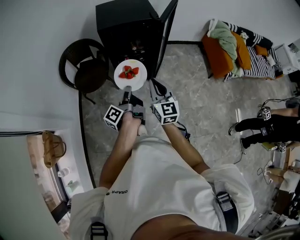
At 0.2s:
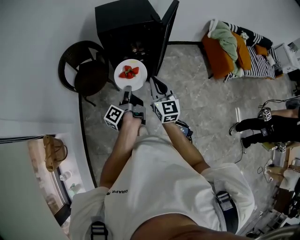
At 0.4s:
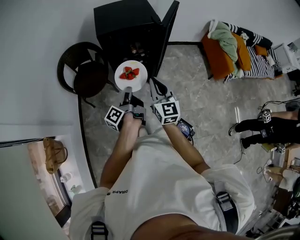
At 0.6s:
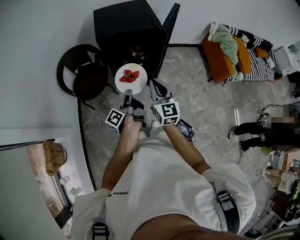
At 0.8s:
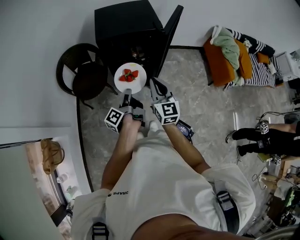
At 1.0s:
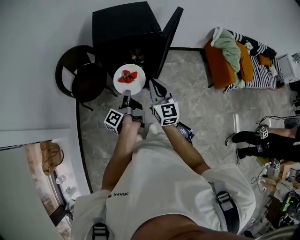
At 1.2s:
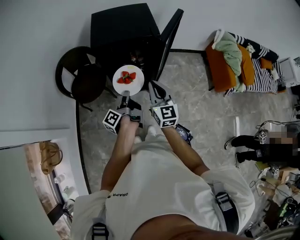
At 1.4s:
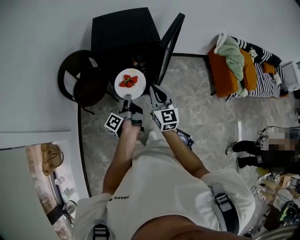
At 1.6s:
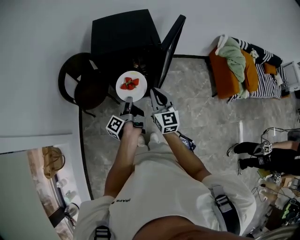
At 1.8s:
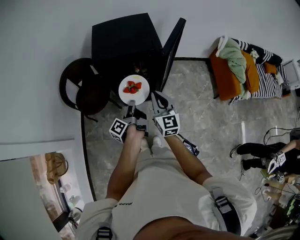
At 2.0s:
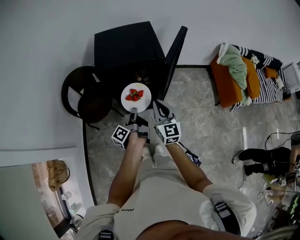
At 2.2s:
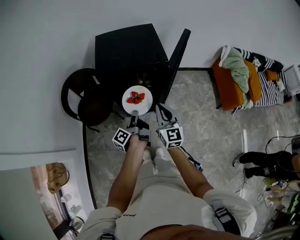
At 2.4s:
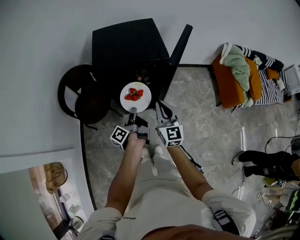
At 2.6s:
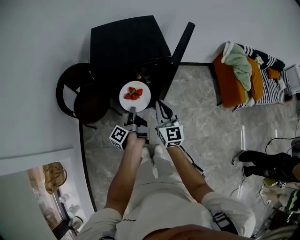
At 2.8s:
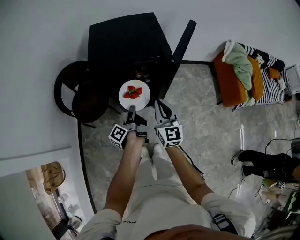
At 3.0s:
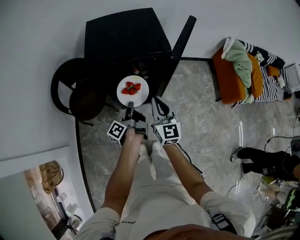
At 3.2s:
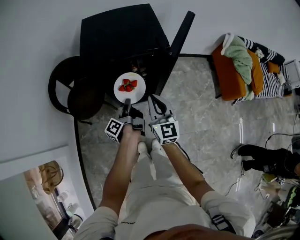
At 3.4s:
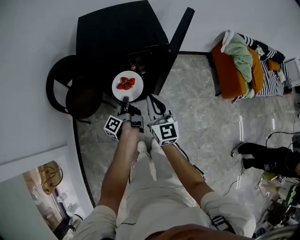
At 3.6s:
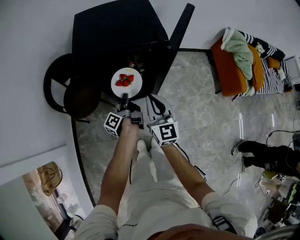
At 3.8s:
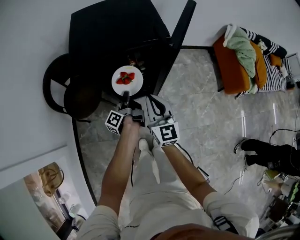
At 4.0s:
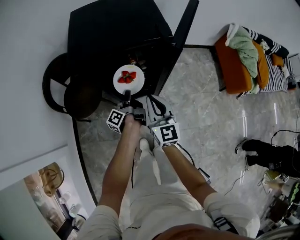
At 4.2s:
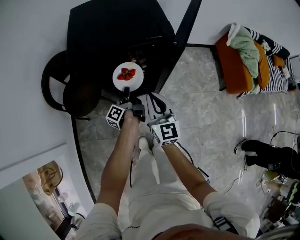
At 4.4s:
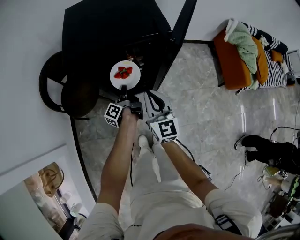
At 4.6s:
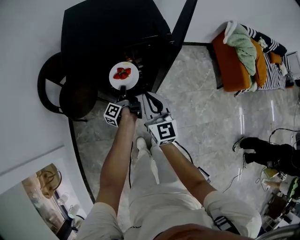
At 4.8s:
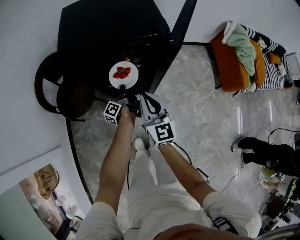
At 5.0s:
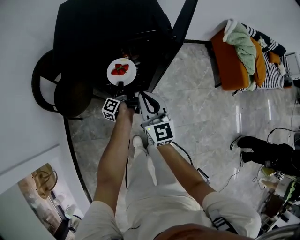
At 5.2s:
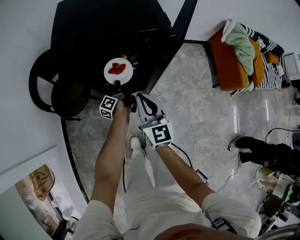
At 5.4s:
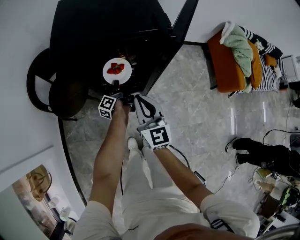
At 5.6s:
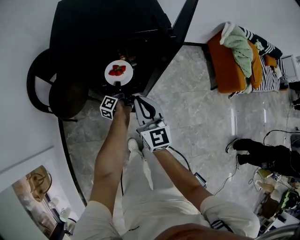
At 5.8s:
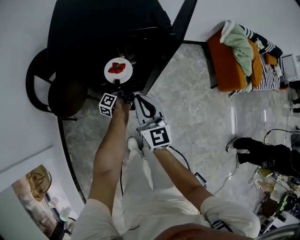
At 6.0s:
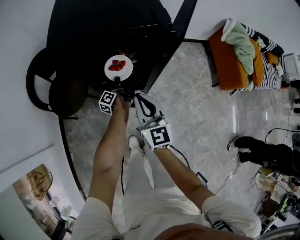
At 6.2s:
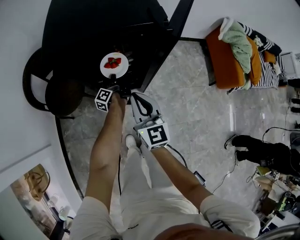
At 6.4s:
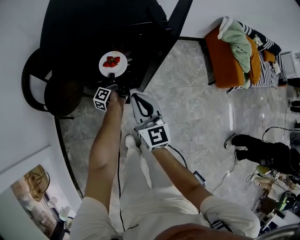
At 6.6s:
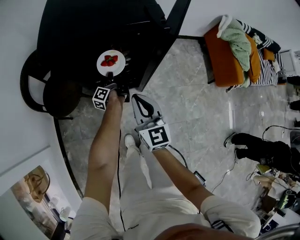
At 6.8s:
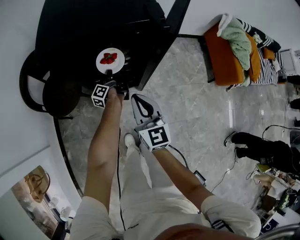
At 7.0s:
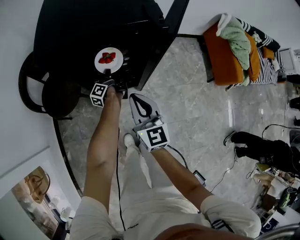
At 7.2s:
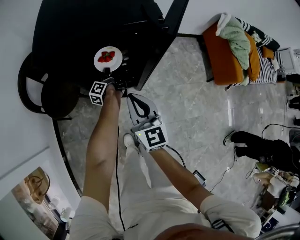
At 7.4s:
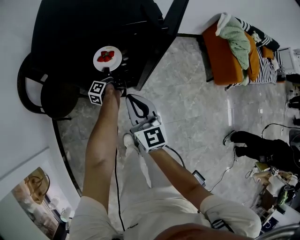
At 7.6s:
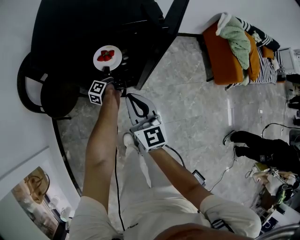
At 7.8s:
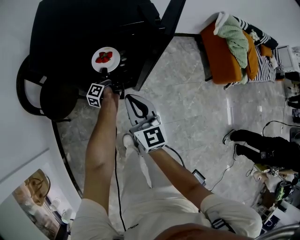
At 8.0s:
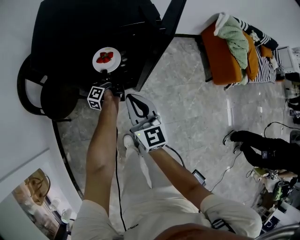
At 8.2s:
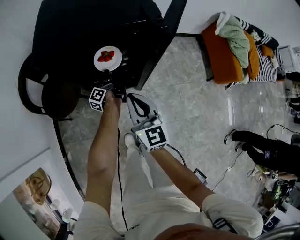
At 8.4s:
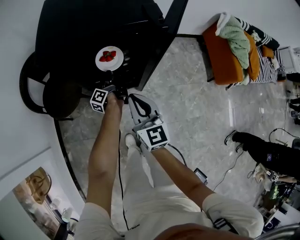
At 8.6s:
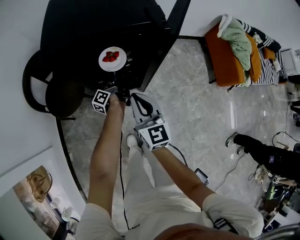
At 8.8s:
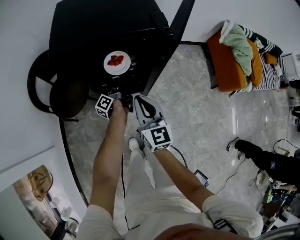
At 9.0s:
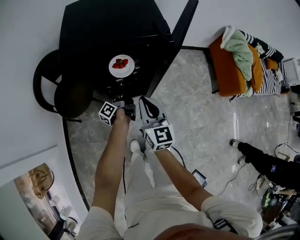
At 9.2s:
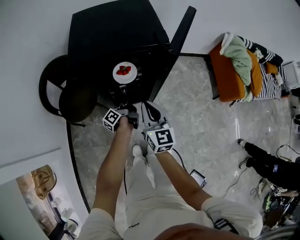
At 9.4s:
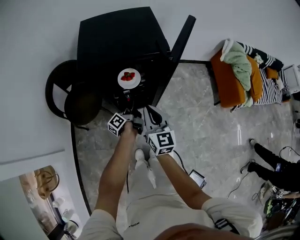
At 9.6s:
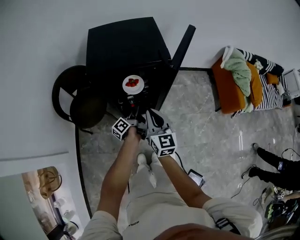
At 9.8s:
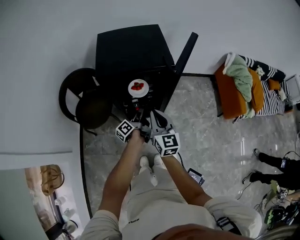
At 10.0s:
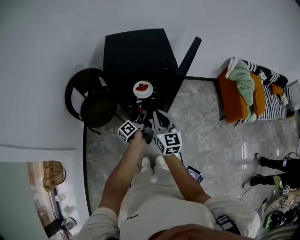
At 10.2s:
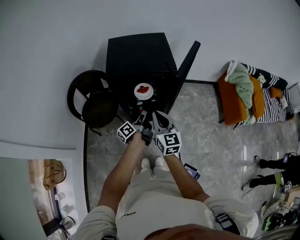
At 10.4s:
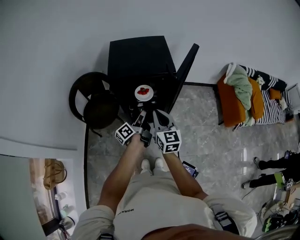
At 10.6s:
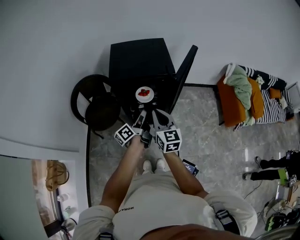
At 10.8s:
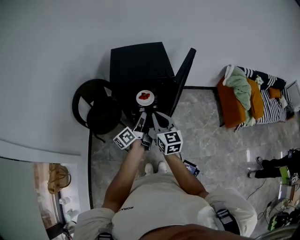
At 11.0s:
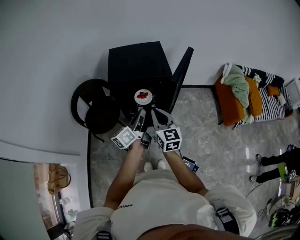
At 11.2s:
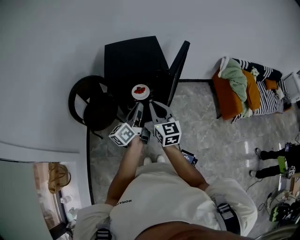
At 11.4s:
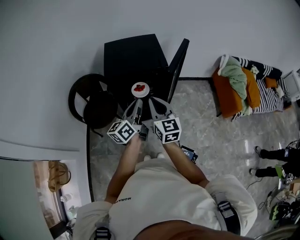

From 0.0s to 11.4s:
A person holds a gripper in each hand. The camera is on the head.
From 0.0s to 1.4s: The right gripper shifts by some 15 cm.
From 1.4s to 2.8s: The right gripper moves roughly 10 cm.
From 2.8s to 4.2s: The right gripper shifts approximately 5 cm downward.
From 8.6s to 10.0s: The right gripper is displaced upward by roughly 15 cm.
From 10.0s to 11.4s: The right gripper shifts about 10 cm upward.

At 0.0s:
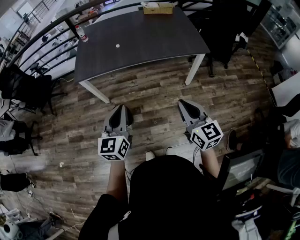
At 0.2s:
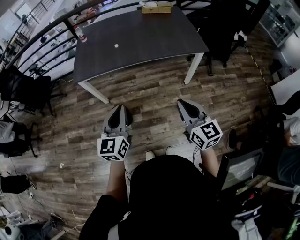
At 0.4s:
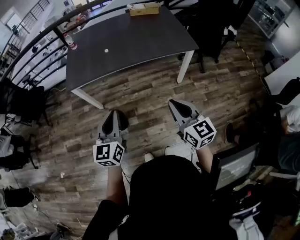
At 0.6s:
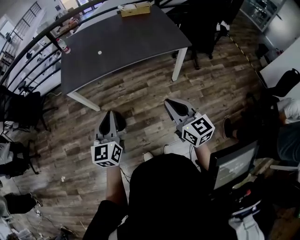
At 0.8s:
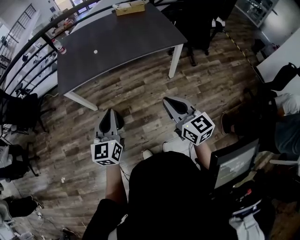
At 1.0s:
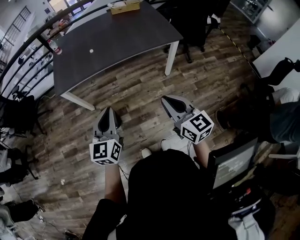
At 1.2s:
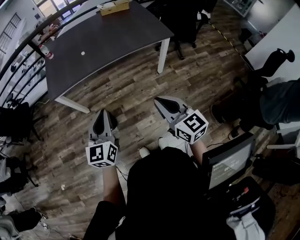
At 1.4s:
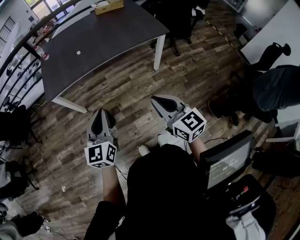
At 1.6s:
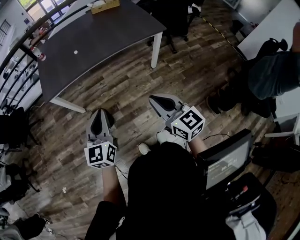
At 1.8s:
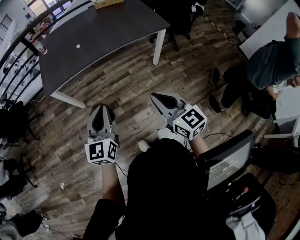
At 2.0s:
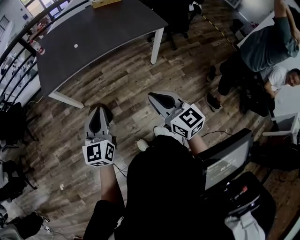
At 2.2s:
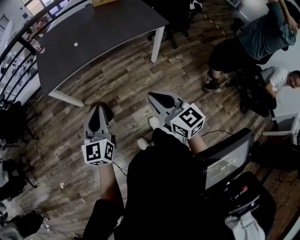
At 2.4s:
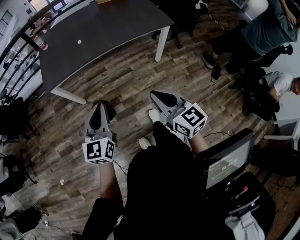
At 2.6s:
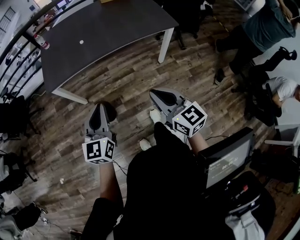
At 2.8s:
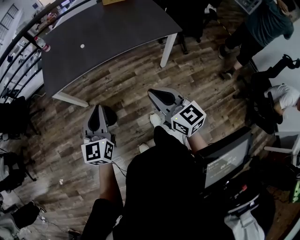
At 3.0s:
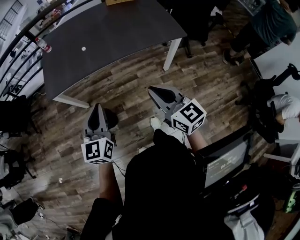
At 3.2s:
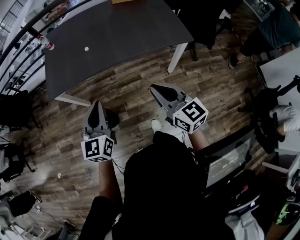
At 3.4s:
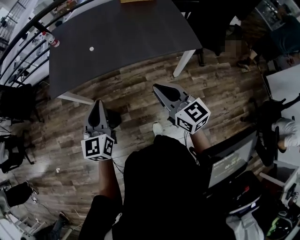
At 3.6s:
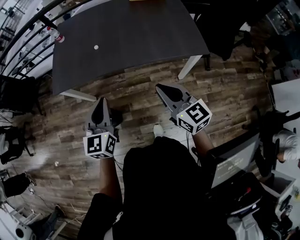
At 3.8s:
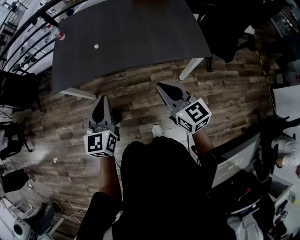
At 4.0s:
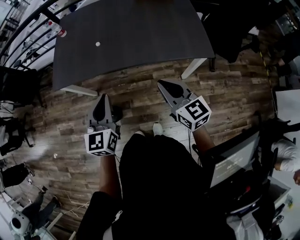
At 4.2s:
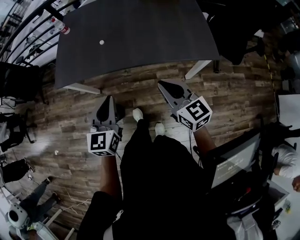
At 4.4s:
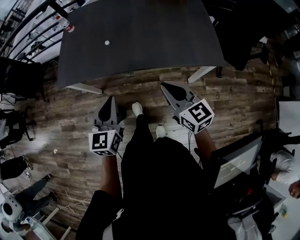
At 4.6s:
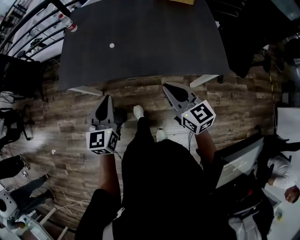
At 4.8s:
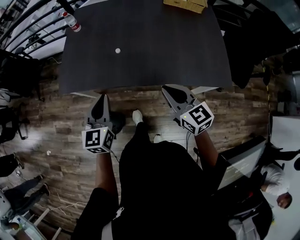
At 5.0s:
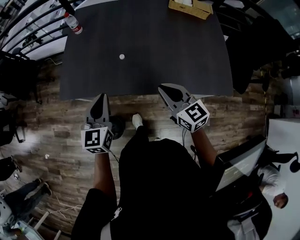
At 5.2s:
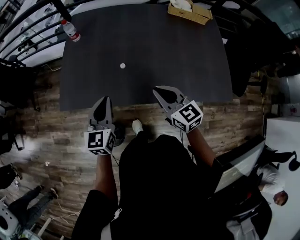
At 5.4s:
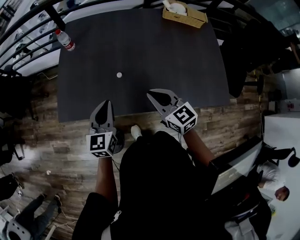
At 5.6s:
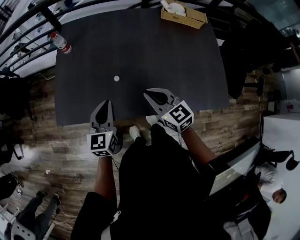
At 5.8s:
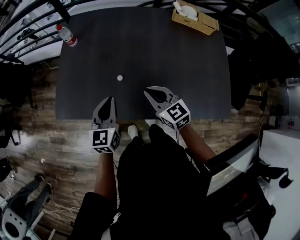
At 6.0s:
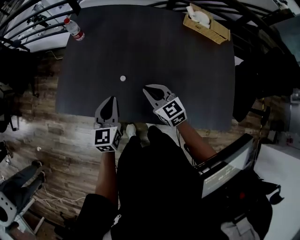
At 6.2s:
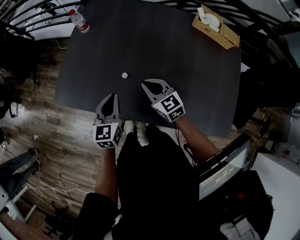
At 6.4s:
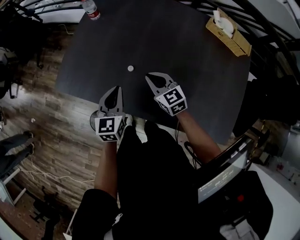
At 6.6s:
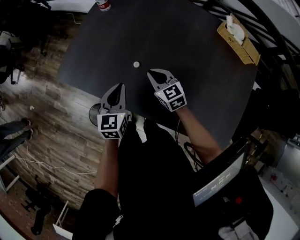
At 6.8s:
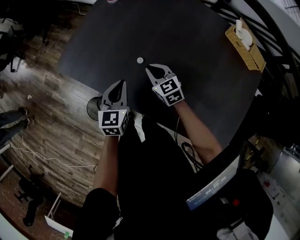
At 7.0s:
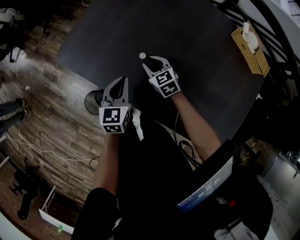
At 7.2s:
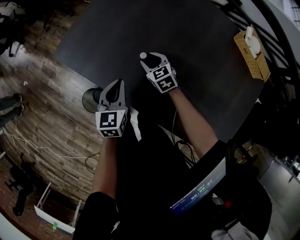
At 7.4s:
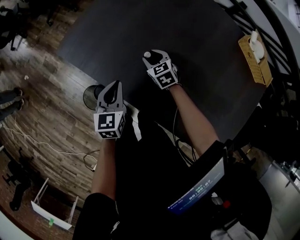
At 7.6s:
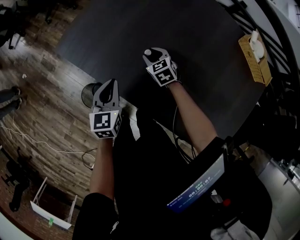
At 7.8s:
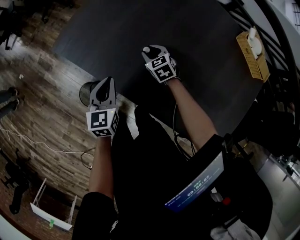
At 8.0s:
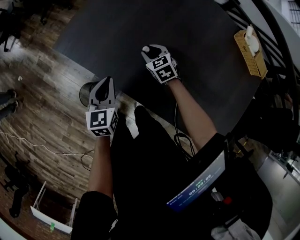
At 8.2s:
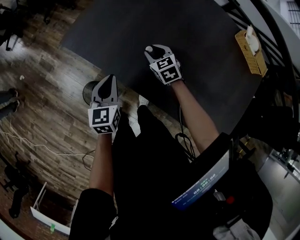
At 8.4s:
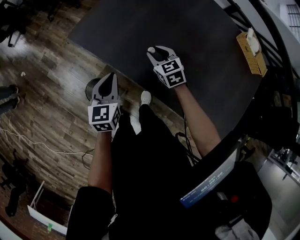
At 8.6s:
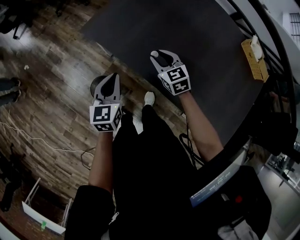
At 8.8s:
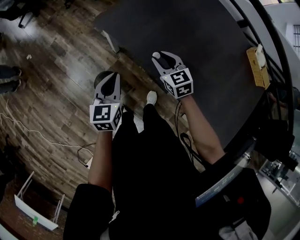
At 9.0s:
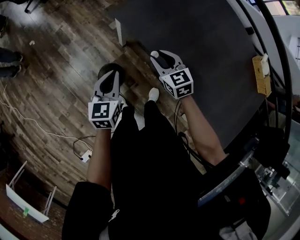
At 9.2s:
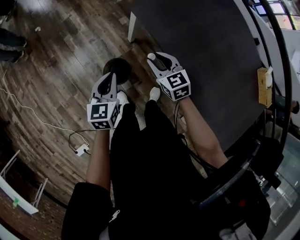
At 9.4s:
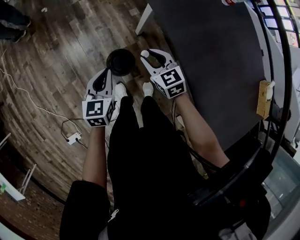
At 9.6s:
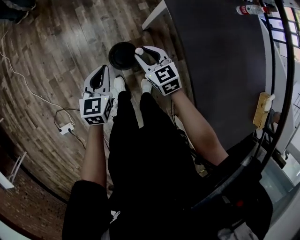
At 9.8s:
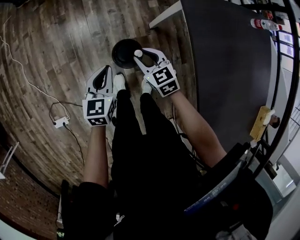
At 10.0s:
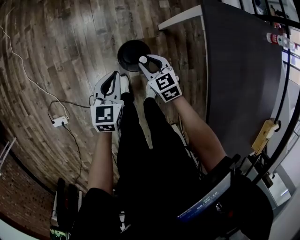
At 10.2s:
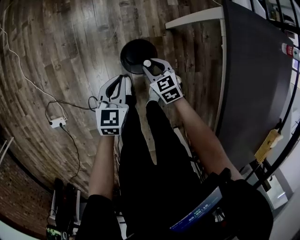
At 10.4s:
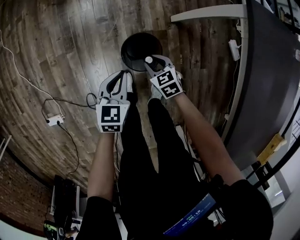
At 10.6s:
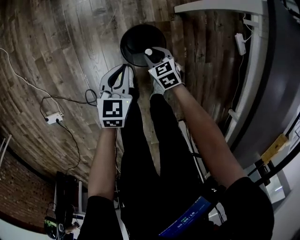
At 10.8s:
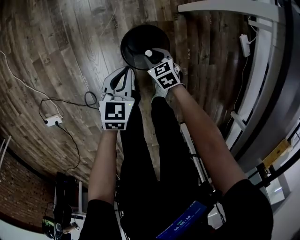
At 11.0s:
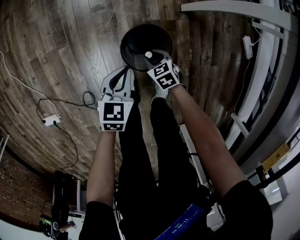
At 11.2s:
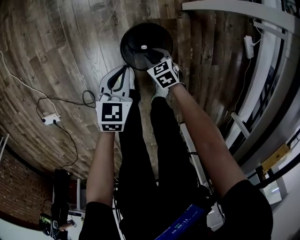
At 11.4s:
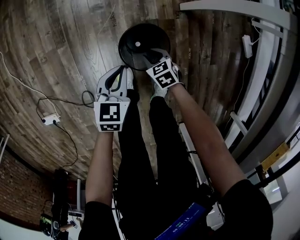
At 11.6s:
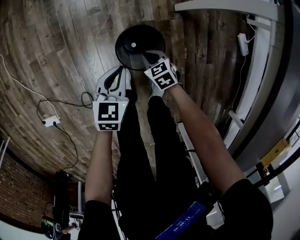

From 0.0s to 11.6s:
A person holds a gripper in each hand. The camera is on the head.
From 0.0s to 1.4s: The right gripper shifts about 5 cm backward.
From 1.4s to 2.8s: The grippers both shift forward by about 10 cm.
From 2.8s to 4.4s: The right gripper heads forward, covering approximately 25 cm. The left gripper goes roughly 20 cm forward and to the right.
From 4.4s to 5.8s: Both grippers travel together forward, roughly 35 cm.
From 5.8s to 7.2s: The left gripper is displaced downward by some 10 cm, and rotates some 30 degrees. Meanwhile the right gripper goes roughly 20 cm downward, swivels approximately 30 degrees, and opens.
From 7.2s to 8.8s: The right gripper heads to the left and upward, covering about 20 cm. Meanwhile the left gripper shifts about 25 cm to the left.
From 8.8s to 10.2s: Both grippers move downward, approximately 30 cm. The right gripper swivels approximately 50 degrees; the left gripper rotates approximately 30 degrees.
From 10.2s to 11.6s: Both grippers move downward, approximately 20 cm. The right gripper closes up.

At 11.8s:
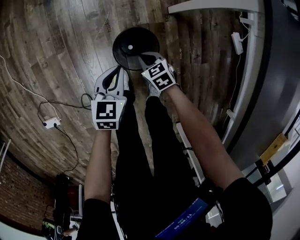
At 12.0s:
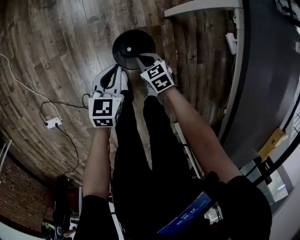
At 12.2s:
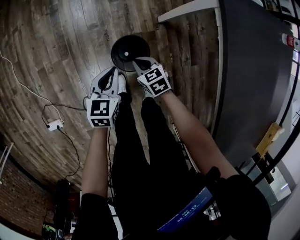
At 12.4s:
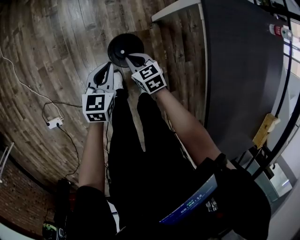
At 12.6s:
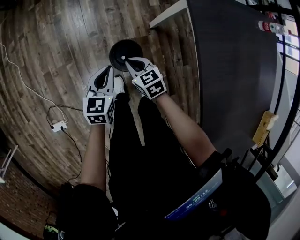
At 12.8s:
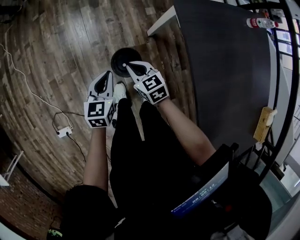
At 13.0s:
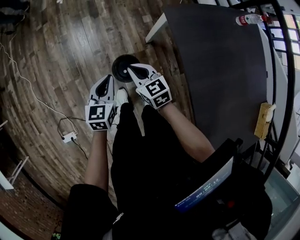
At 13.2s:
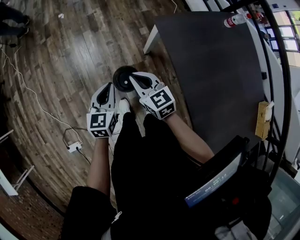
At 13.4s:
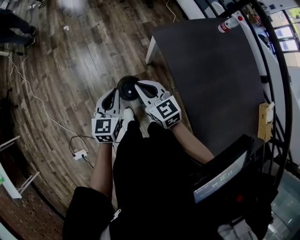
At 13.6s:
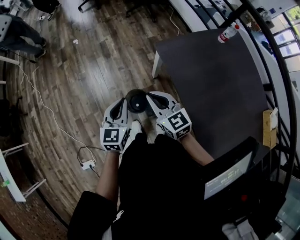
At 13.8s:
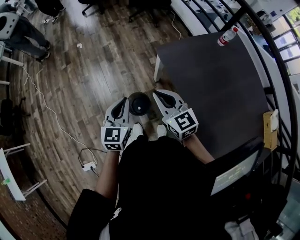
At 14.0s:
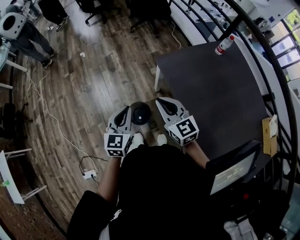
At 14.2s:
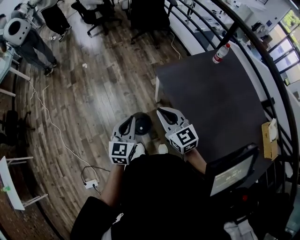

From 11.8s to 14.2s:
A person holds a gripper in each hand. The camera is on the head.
From 11.8s to 13.0s: Both grippers travel together upward, approximately 40 cm. The right gripper rotates approximately 30 degrees.
From 13.0s to 14.2s: Both grippers move upward and to the right, about 25 cm. The right gripper turns by some 20 degrees.
